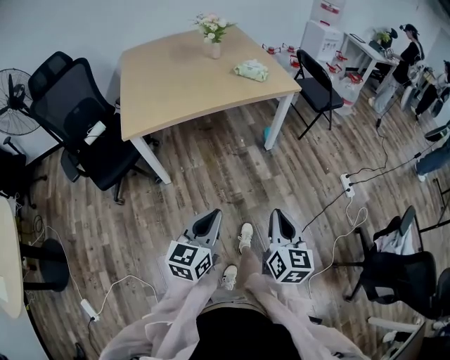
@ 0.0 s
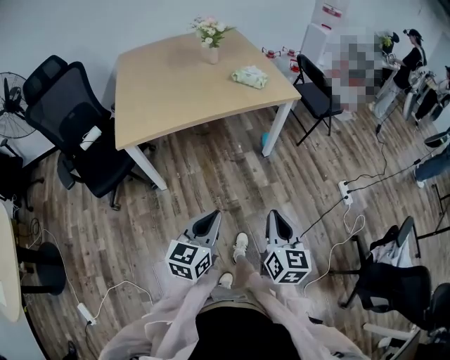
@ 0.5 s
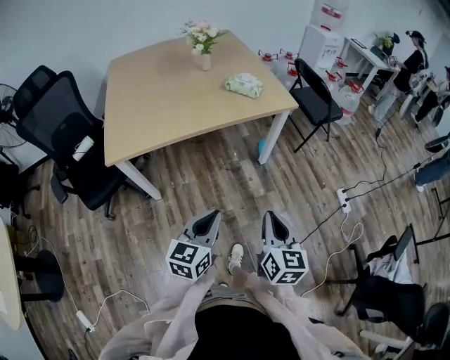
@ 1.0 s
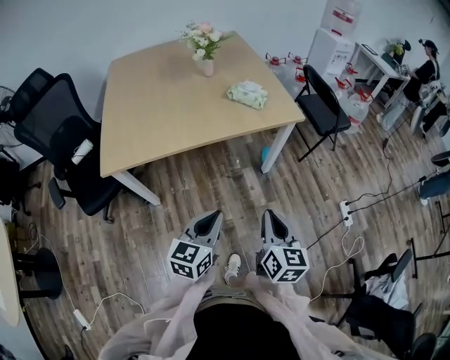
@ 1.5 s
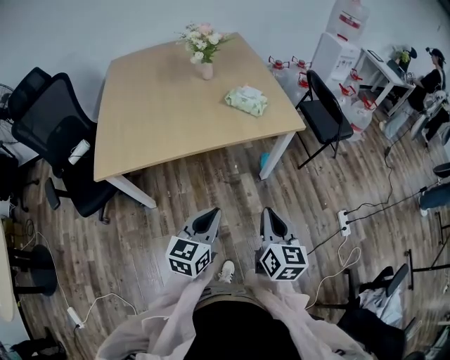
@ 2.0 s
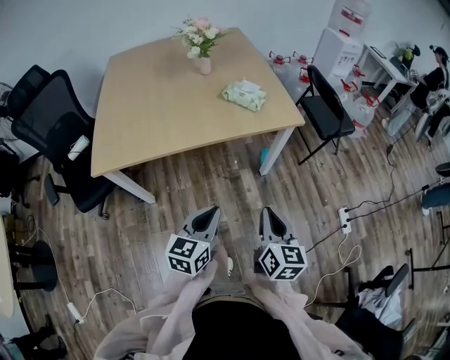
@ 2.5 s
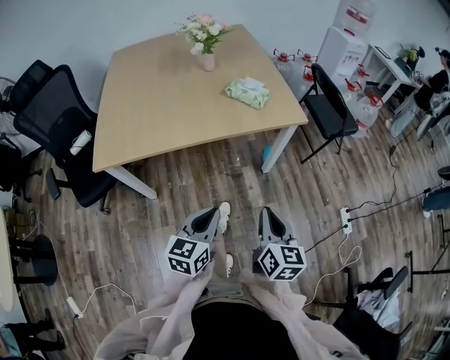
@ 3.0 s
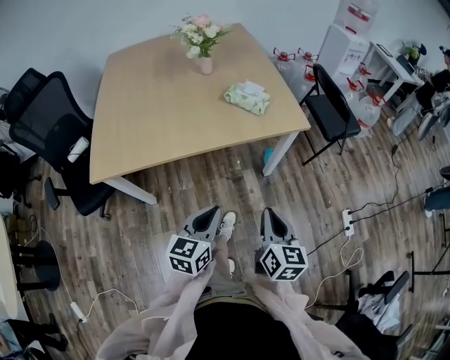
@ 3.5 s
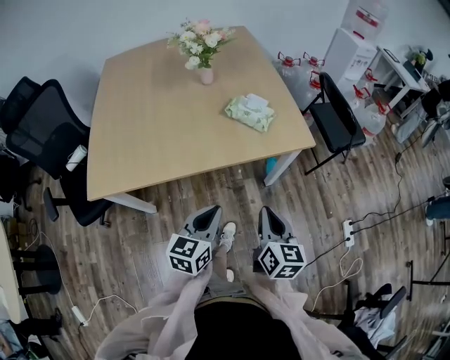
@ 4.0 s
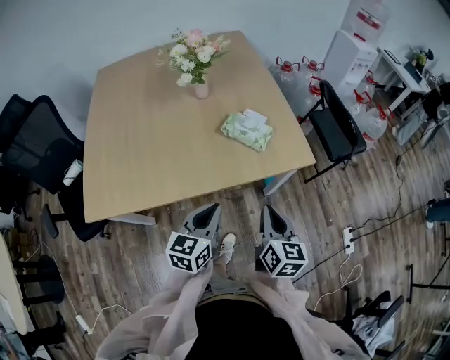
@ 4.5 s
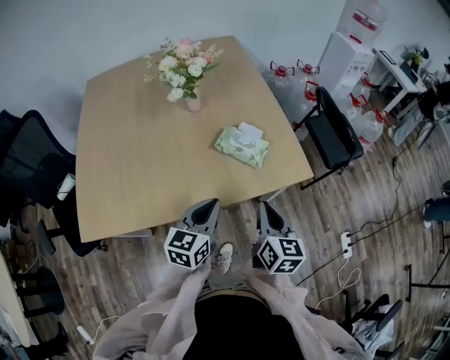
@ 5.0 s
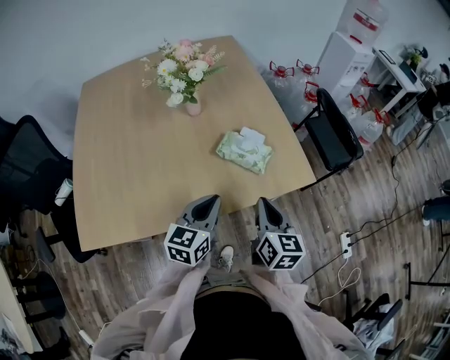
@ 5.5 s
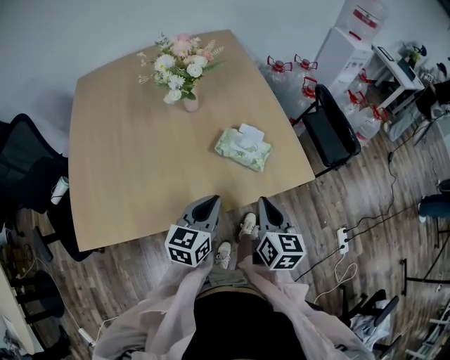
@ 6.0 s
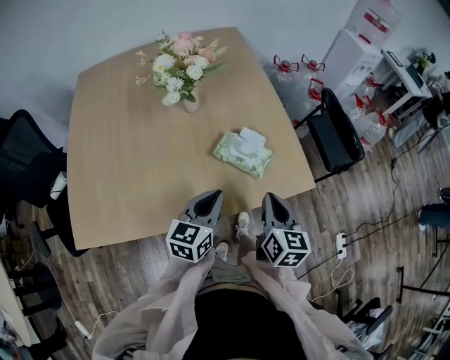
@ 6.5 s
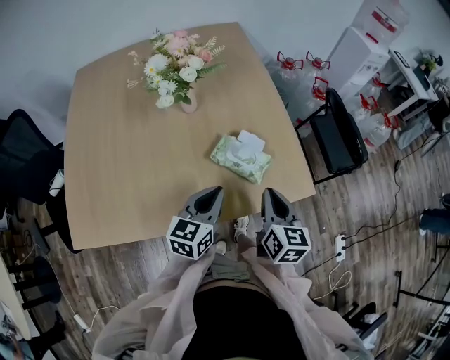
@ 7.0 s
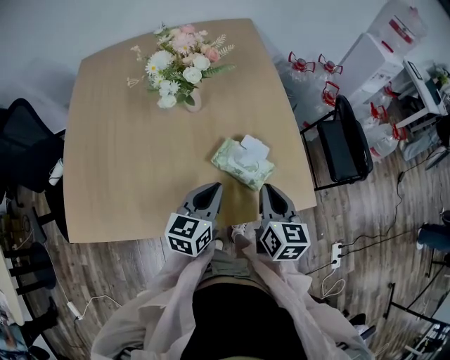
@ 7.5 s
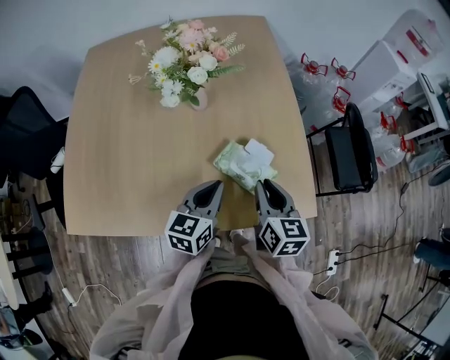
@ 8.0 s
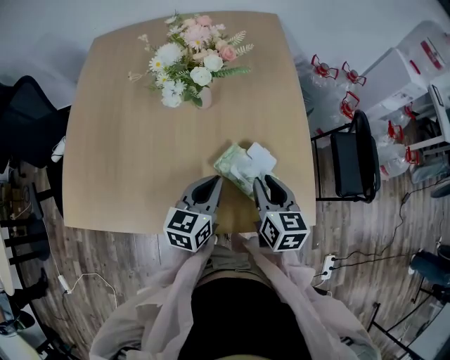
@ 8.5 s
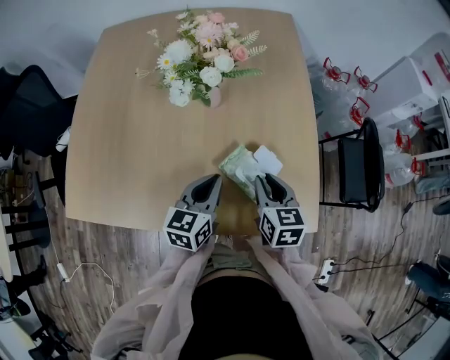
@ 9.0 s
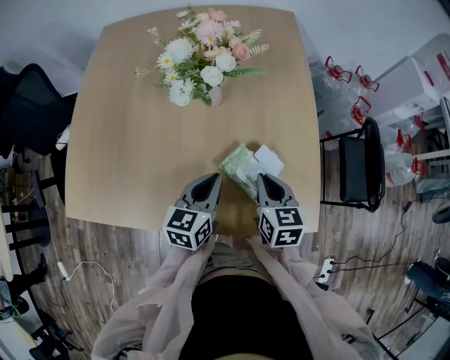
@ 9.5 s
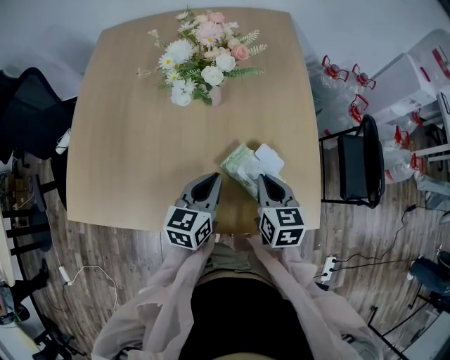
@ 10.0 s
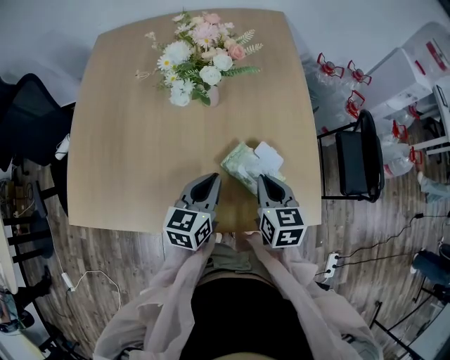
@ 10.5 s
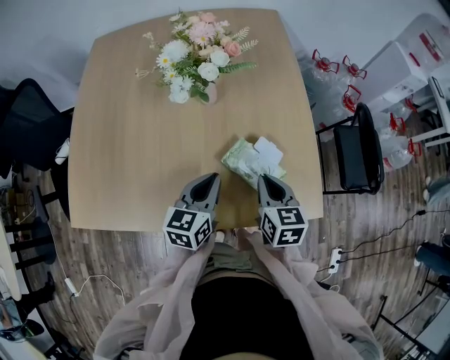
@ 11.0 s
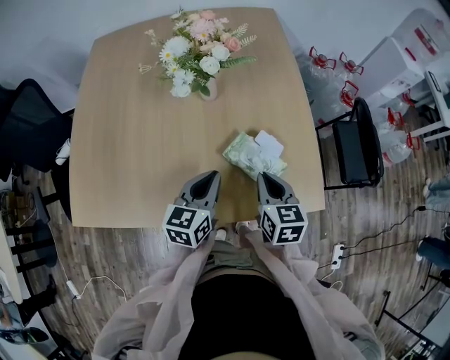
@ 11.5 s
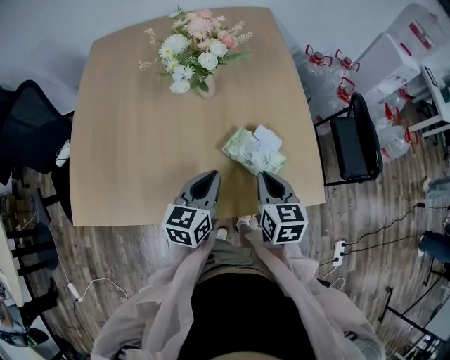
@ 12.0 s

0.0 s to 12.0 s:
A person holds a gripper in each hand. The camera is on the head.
0.0 to 2.0 s: The grippers both shift forward by some 30 cm.
2.0 to 4.0 s: Both grippers travel together forward, some 15 cm.
4.0 to 6.0 s: The grippers both shift forward by about 20 cm.
6.0 to 8.0 s: Both grippers move forward, roughly 15 cm.
8.0 to 10.0 s: The right gripper changes place by roughly 5 cm.
10.0 to 12.0 s: The left gripper changes place by roughly 5 cm. The right gripper travels backward by about 5 cm.

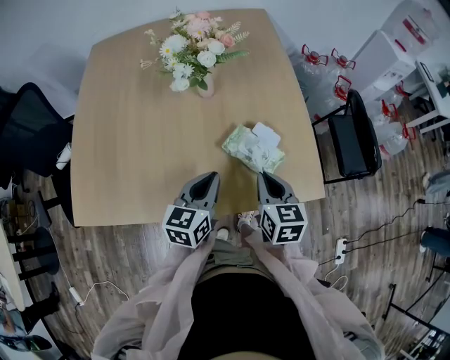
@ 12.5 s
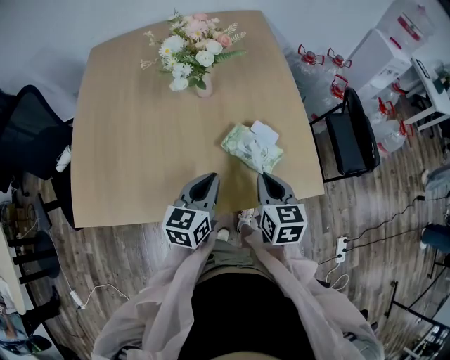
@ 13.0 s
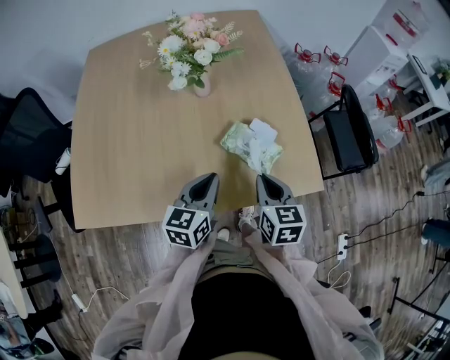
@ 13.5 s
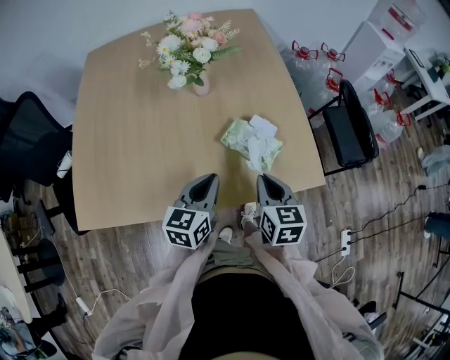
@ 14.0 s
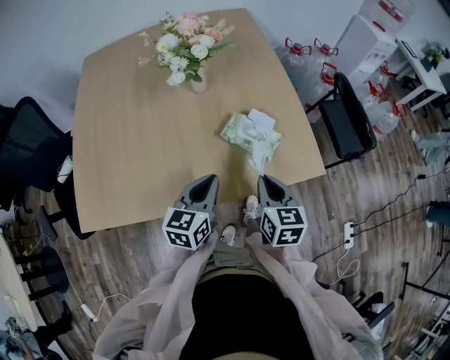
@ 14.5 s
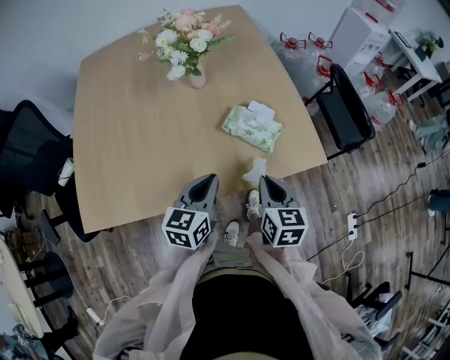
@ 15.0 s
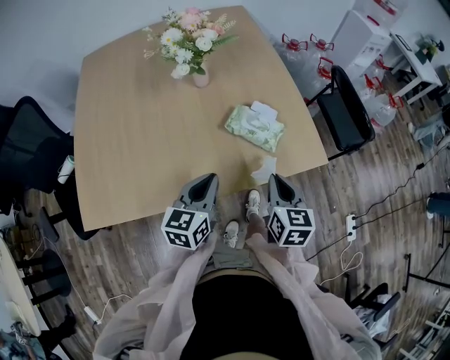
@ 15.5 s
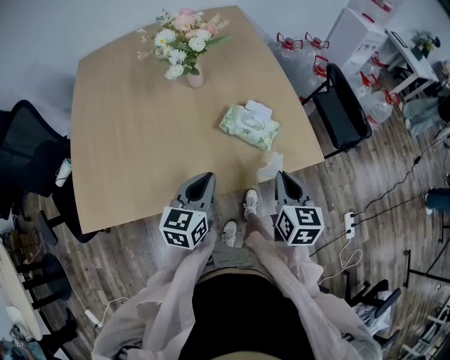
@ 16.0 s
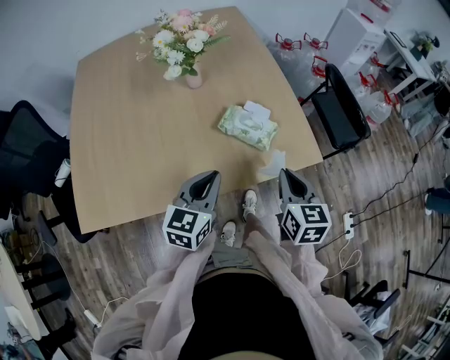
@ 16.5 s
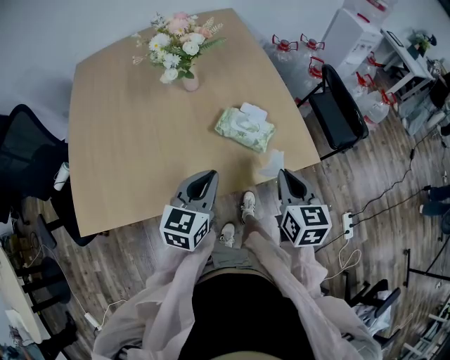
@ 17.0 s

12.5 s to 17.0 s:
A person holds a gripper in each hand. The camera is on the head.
12.5 to 14.5 s: The grippers both shift backward by approximately 5 cm.
14.5 to 17.0 s: The right gripper moves to the right, approximately 5 cm.

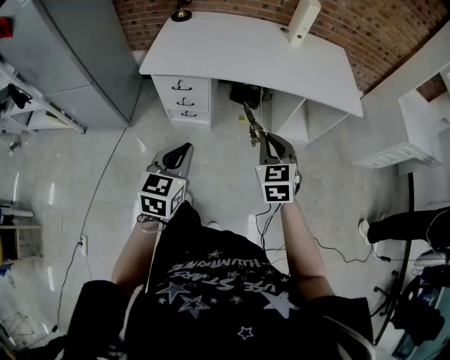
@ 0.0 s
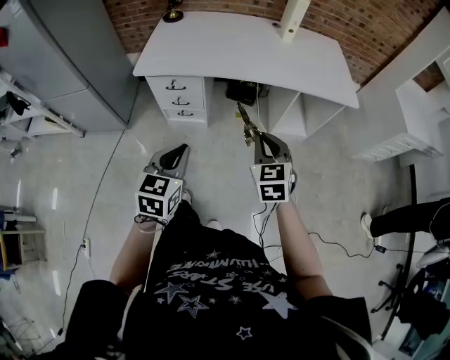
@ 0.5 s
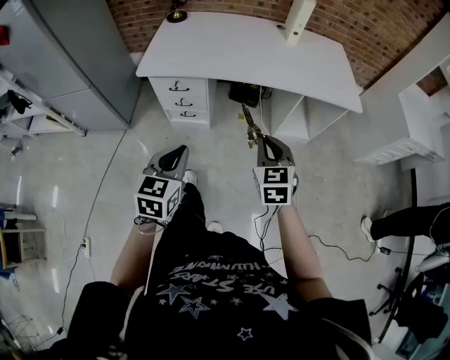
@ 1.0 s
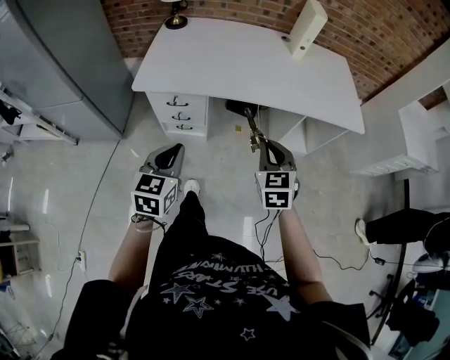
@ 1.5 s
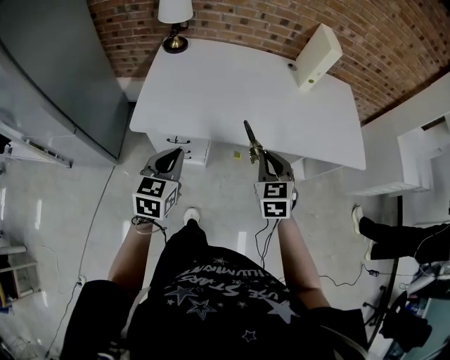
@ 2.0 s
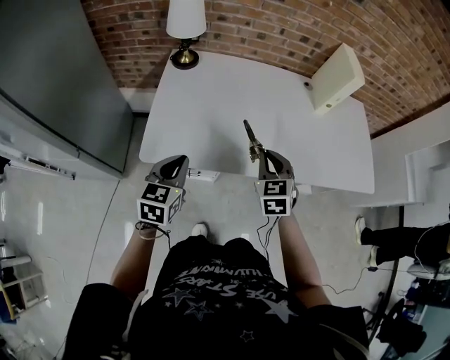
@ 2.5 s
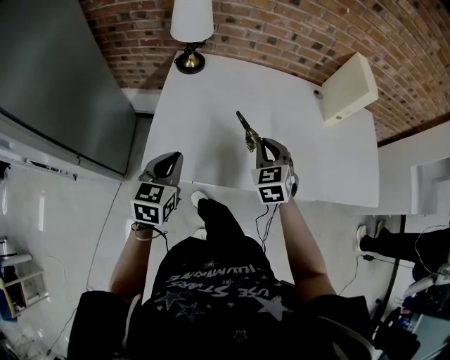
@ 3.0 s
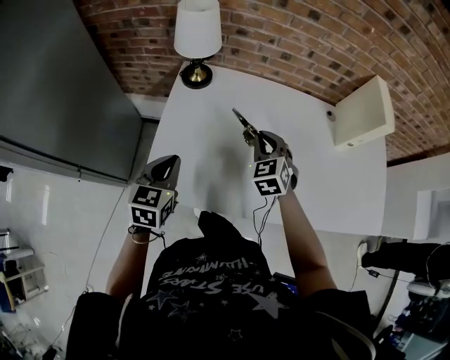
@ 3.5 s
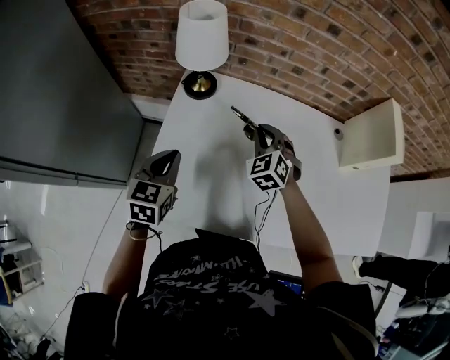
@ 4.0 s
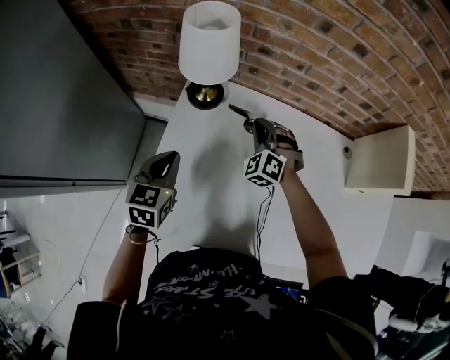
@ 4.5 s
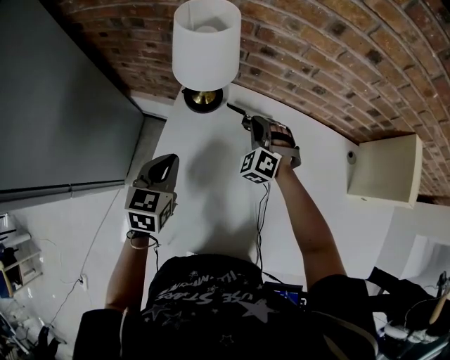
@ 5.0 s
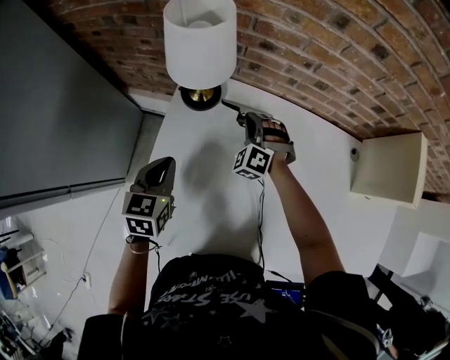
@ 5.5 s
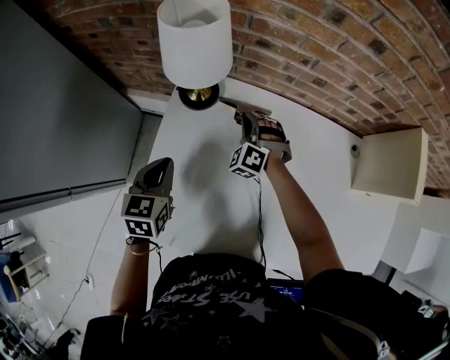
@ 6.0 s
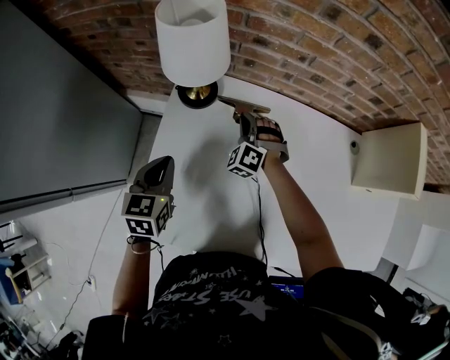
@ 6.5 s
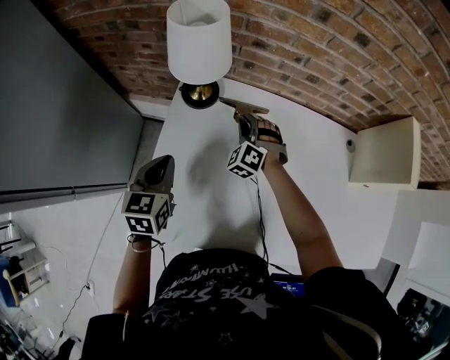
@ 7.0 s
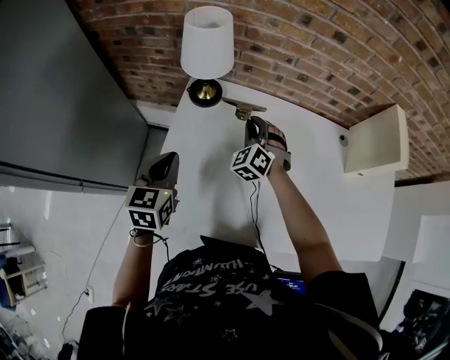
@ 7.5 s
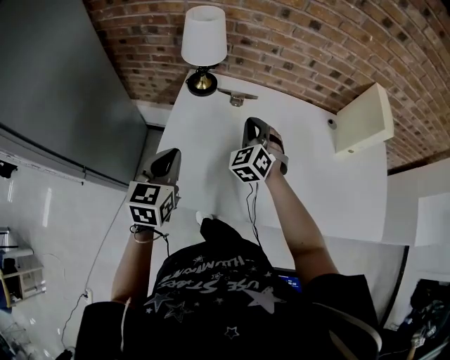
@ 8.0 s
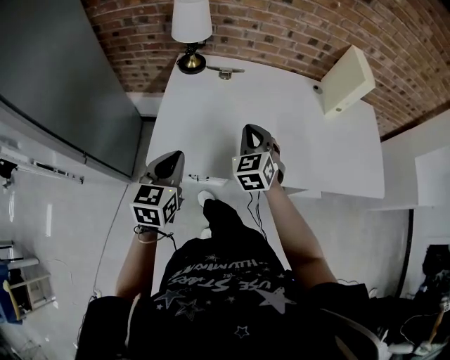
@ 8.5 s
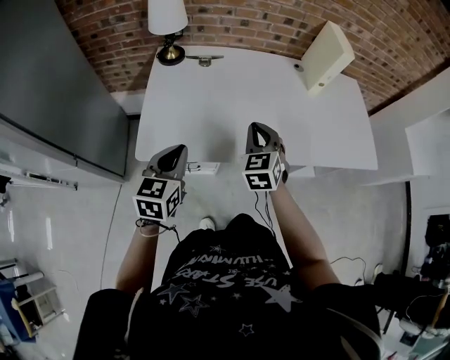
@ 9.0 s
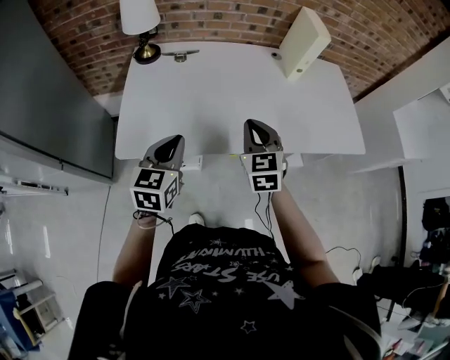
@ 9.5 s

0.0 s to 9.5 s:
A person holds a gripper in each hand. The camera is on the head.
0.0 to 2.0 s: The right gripper travels forward by roughly 25 cm. The left gripper moves forward and to the left, about 30 cm.
2.0 to 4.0 s: Both grippers move forward and to the left, approximately 40 cm. The right gripper swivels about 30 degrees.
4.0 to 5.5 s: The left gripper shifts some 10 cm forward and downward; the right gripper goes some 20 cm forward, downward and to the left, and rotates roughly 30 degrees.
5.5 to 7.5 s: The grippers both shift upward and backward by about 10 cm.
7.5 to 9.5 s: The two grippers go roughly 35 cm backward and to the right. The right gripper rotates around the line of its fingers by about 40 degrees, clockwise from behind; the left gripper changes its angle by about 20 degrees.

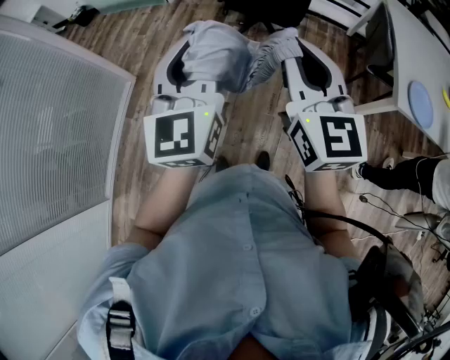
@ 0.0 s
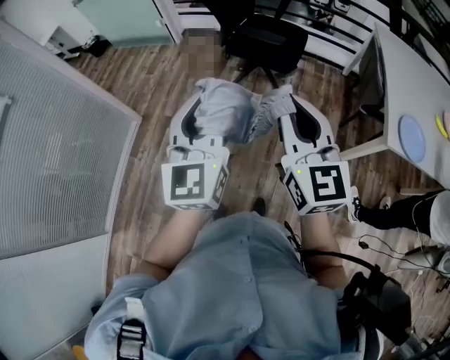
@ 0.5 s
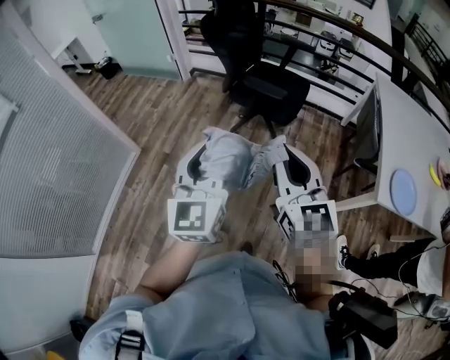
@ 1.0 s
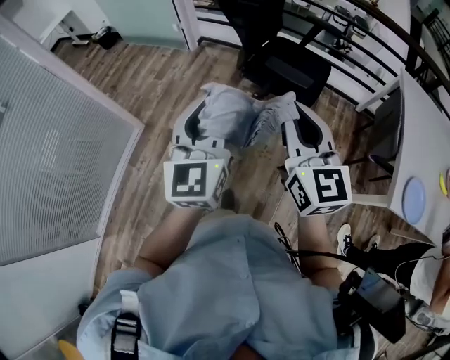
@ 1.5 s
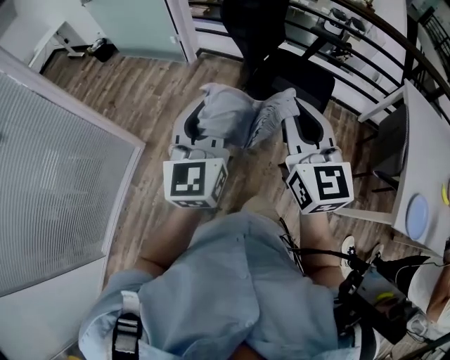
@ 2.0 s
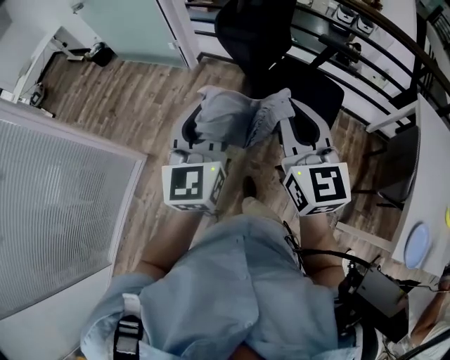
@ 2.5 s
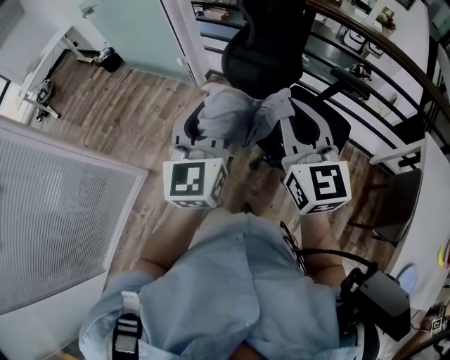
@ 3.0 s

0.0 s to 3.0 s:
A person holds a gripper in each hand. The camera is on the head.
0.0 to 1.5 s: The two grippers go approximately 20 cm forward.
1.5 to 3.0 s: The two grippers go some 35 cm forward.
